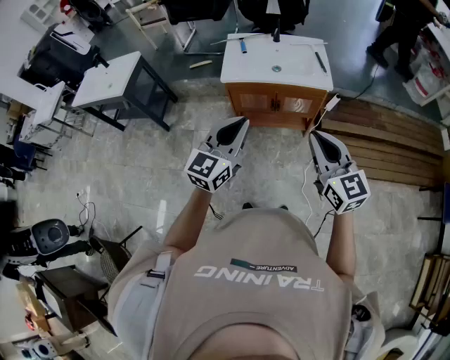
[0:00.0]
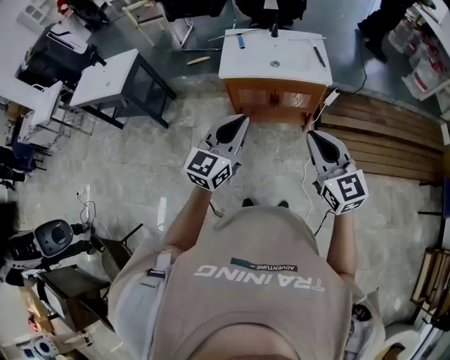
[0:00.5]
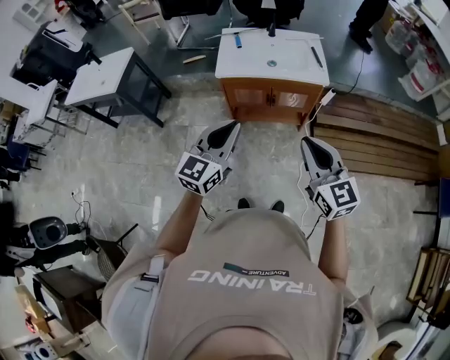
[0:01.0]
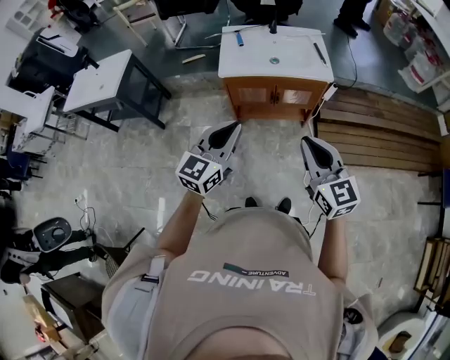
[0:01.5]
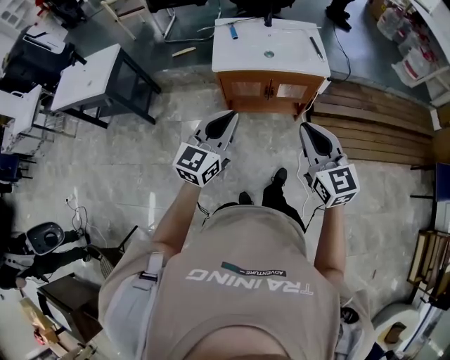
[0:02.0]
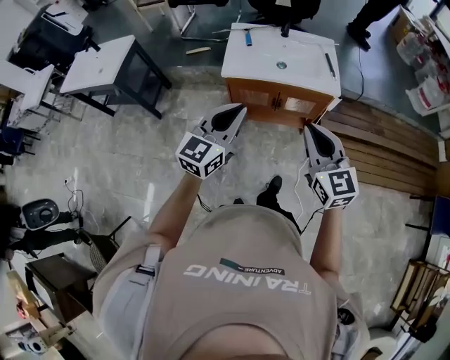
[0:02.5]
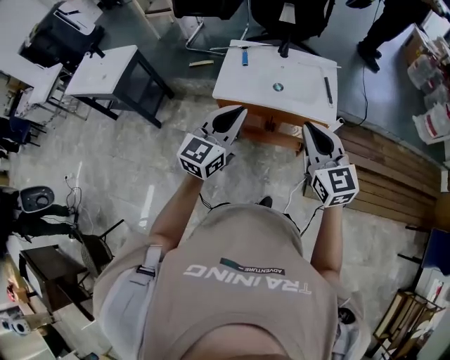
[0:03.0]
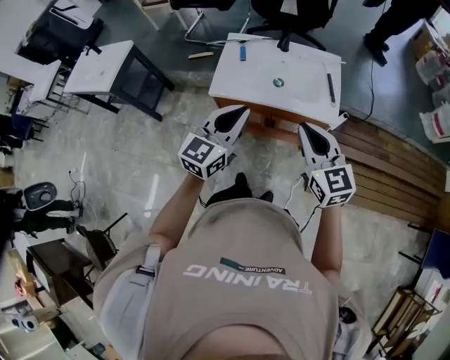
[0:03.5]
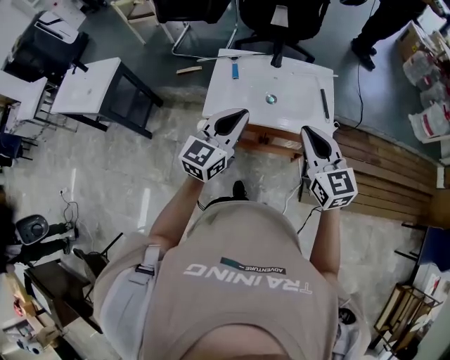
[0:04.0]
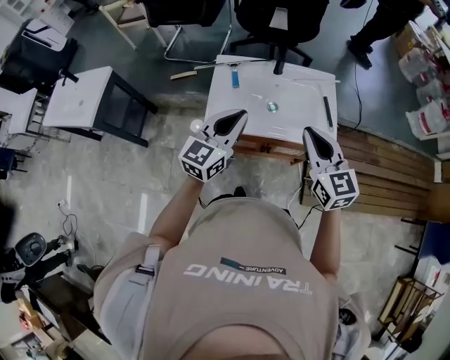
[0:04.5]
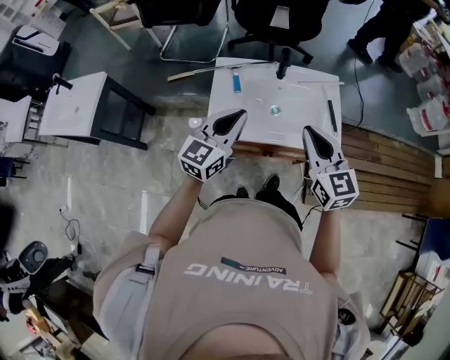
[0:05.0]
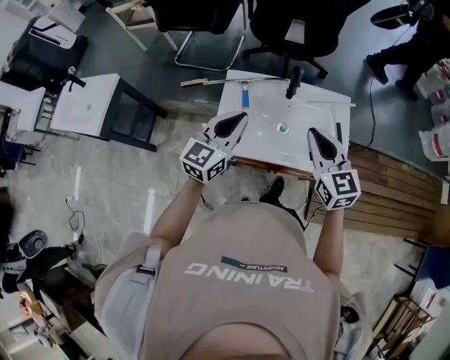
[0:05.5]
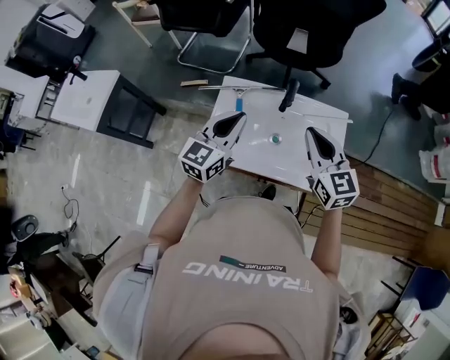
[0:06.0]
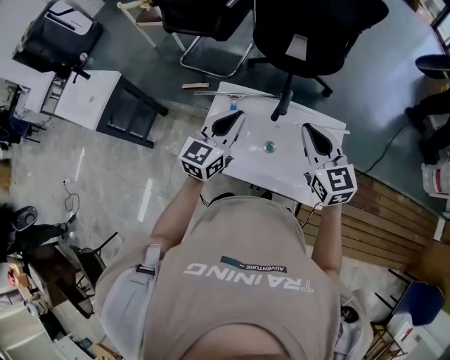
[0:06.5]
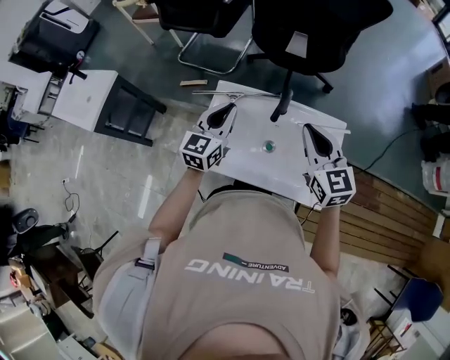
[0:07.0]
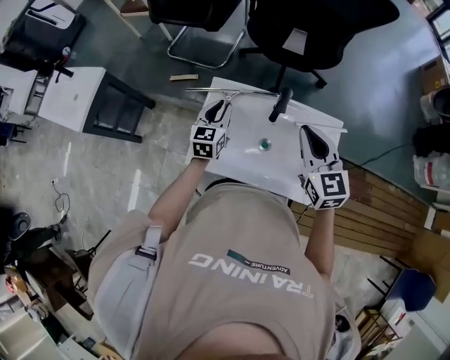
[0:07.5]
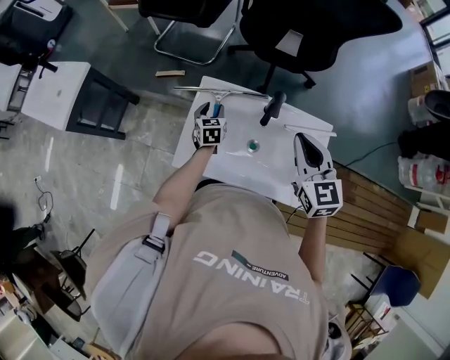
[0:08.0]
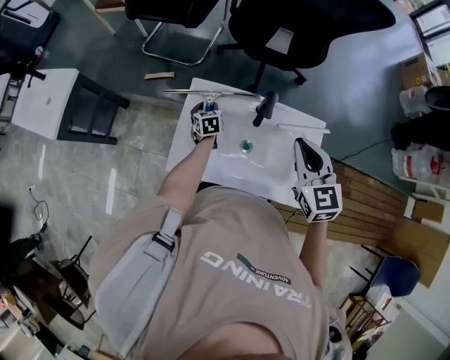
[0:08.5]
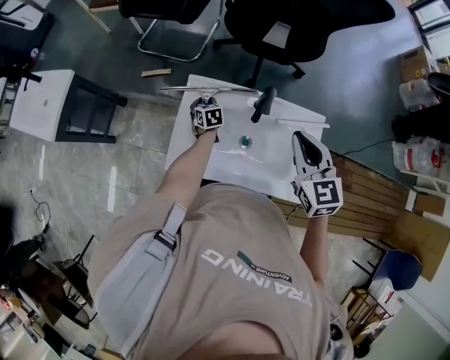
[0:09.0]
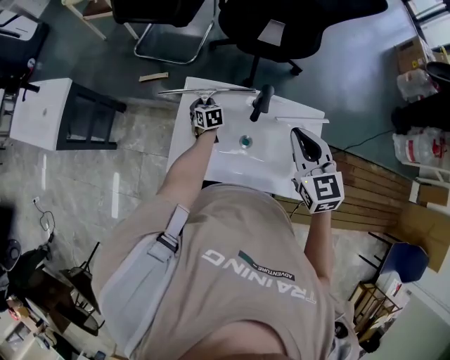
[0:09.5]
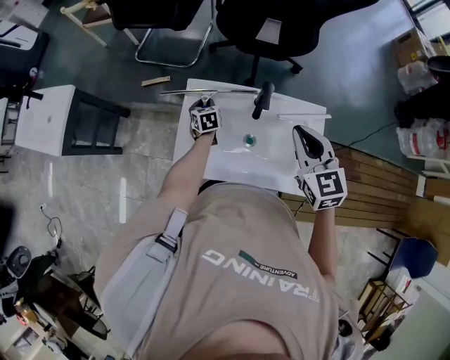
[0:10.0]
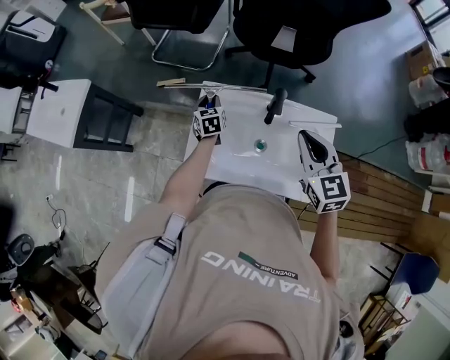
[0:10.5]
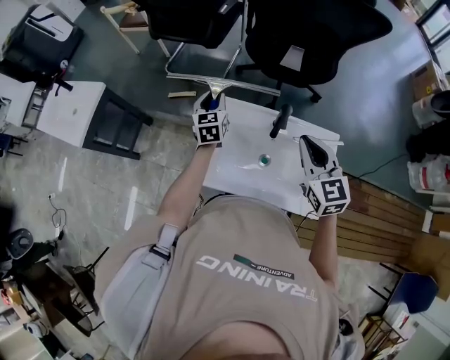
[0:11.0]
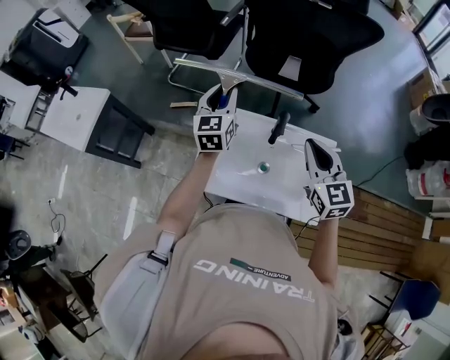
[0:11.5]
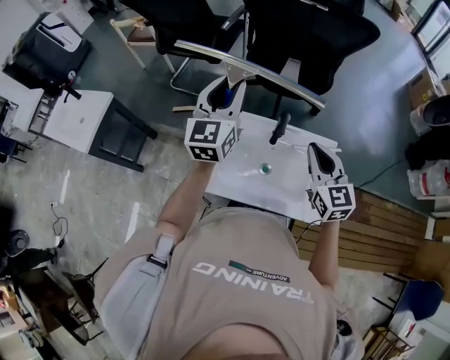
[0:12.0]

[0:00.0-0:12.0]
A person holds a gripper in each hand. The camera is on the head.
0:00.0 to 0:02.0: The two grippers go approximately 5 cm to the left.
0:02.0 to 0:04.0: The grippers both shift forward by approximately 30 cm.
0:04.0 to 0:06.0: The two grippers go approximately 25 cm forward.
0:06.0 to 0:08.0: The left gripper travels downward and forward by about 30 cm, rotates some 40 degrees, and opens its fingers, while the right gripper is displaced forward by approximately 5 cm.
0:08.0 to 0:10.0: The left gripper moves about 5 cm.
0:10.0 to 0:12.0: The left gripper travels upward by approximately 40 cm, and angles its fingers upward, by roughly 50 degrees.

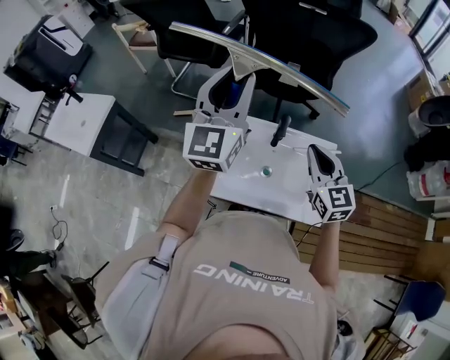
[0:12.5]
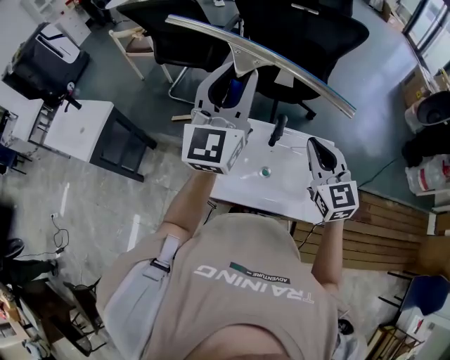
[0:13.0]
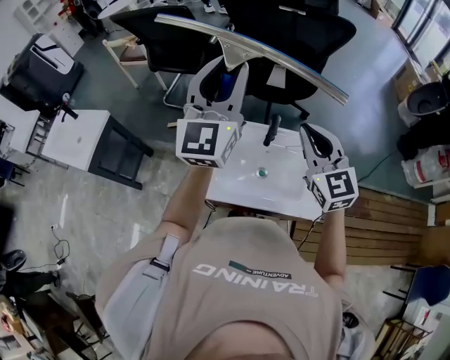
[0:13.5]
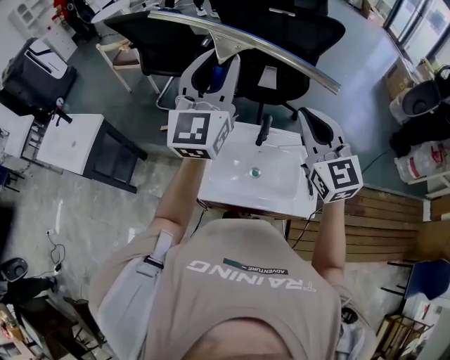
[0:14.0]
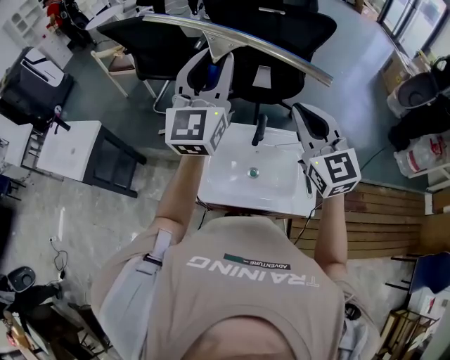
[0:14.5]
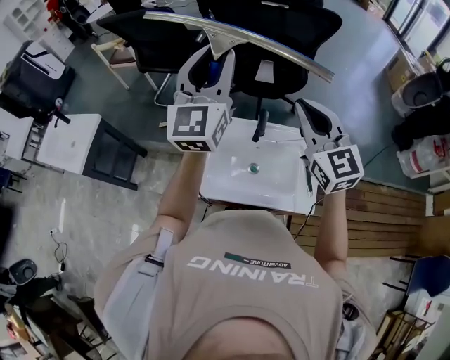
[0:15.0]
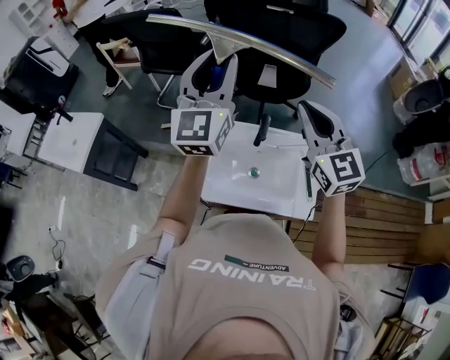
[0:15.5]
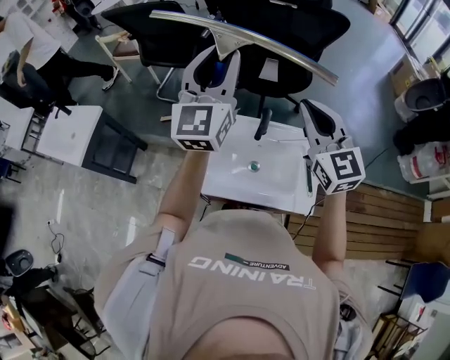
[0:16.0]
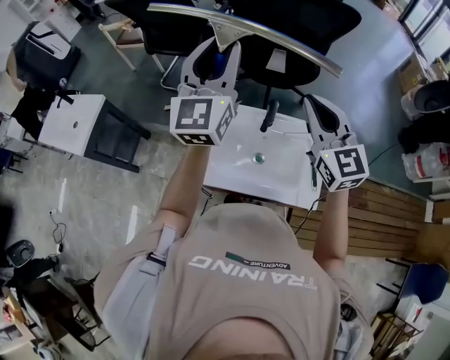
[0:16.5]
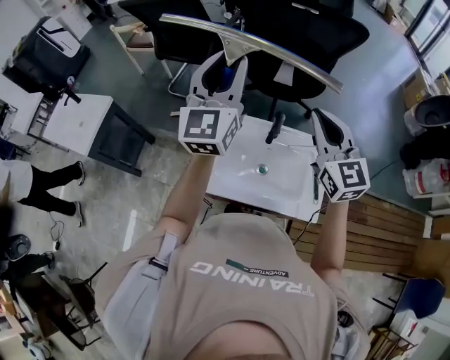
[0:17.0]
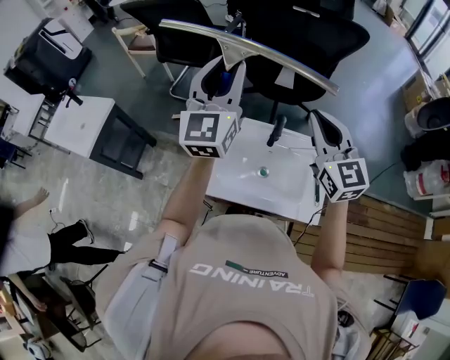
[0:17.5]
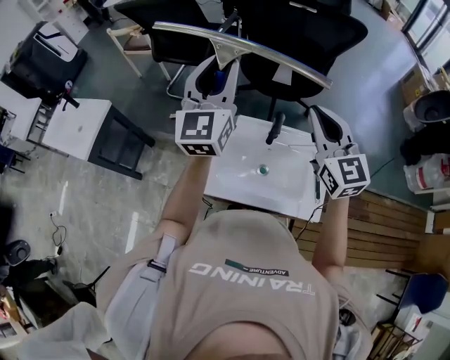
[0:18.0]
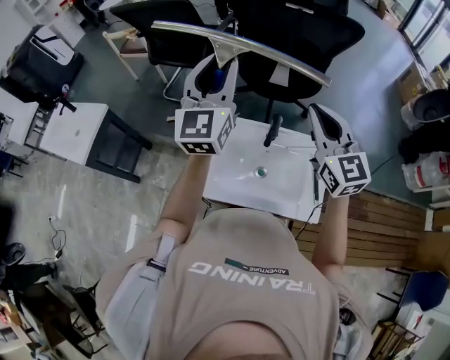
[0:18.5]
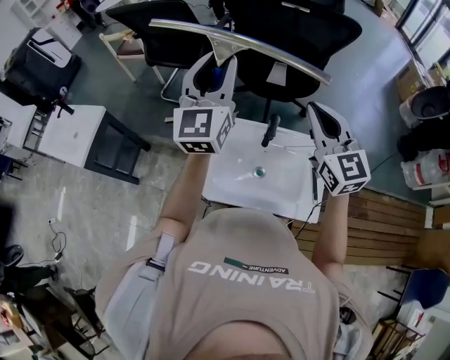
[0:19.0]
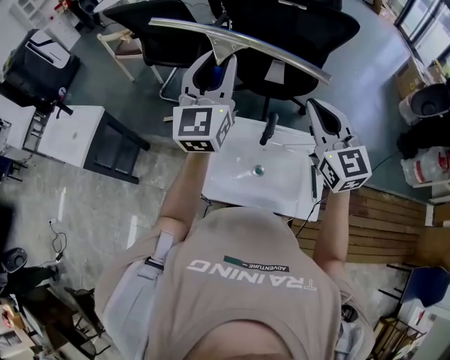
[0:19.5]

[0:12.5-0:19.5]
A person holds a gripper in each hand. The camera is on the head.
0:12.5 to 0:14.5: The right gripper is displaced upward by roughly 15 cm. Meanwhile the left gripper heads upward, covering approximately 5 cm.
0:14.5 to 0:17.5: There are only small adjustments of the grippers.
0:17.5 to 0:19.5: There are only small adjustments of the grippers.

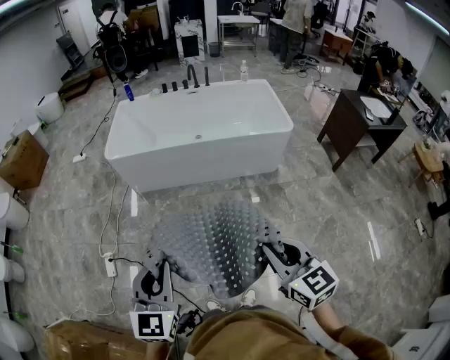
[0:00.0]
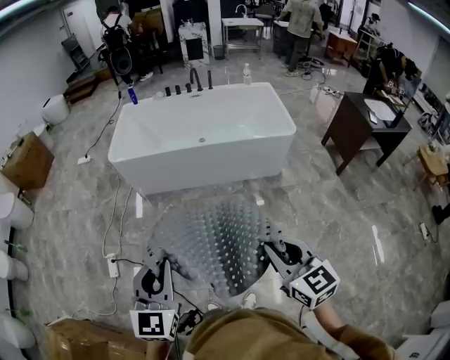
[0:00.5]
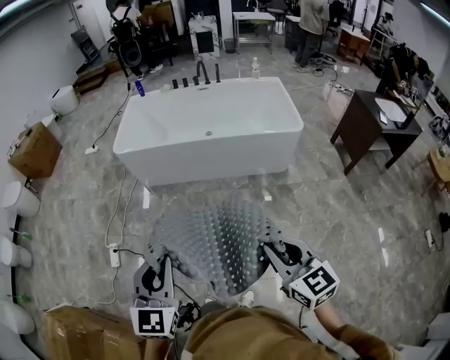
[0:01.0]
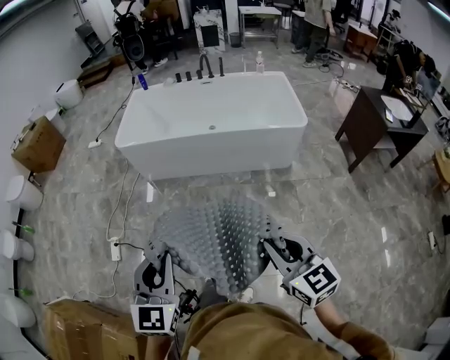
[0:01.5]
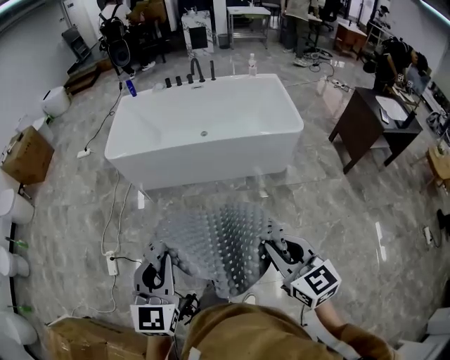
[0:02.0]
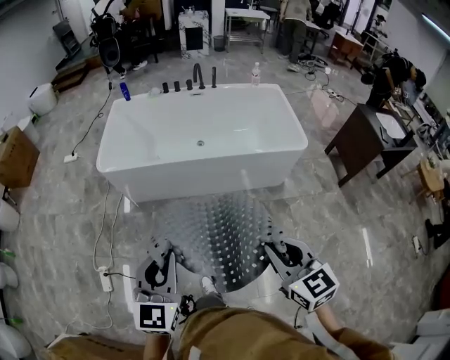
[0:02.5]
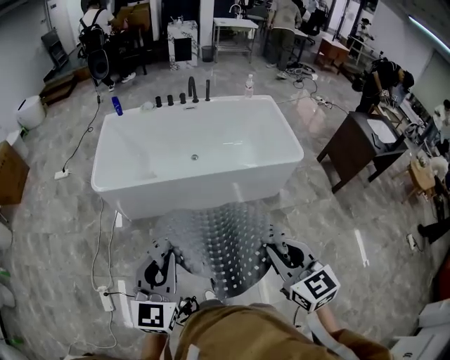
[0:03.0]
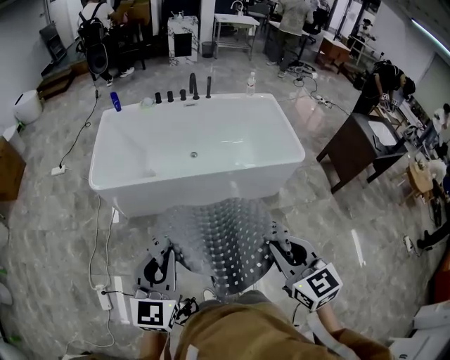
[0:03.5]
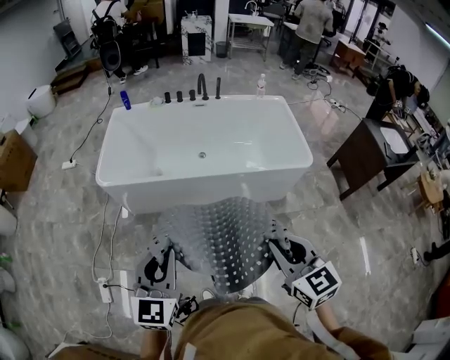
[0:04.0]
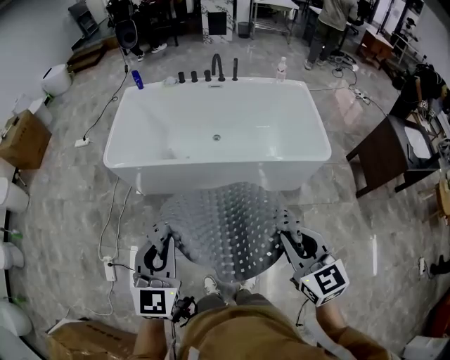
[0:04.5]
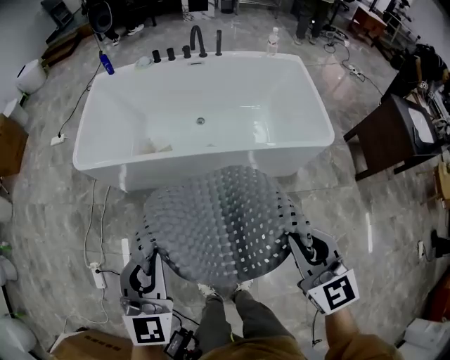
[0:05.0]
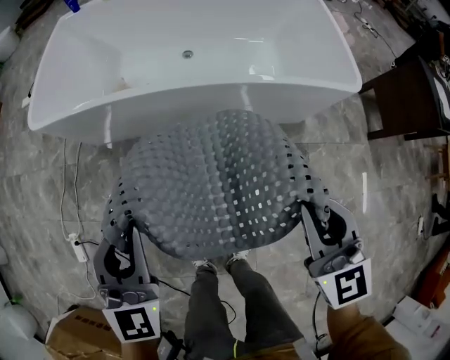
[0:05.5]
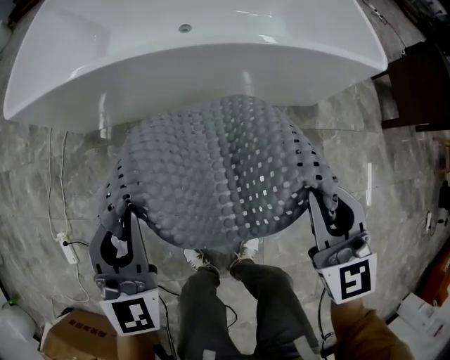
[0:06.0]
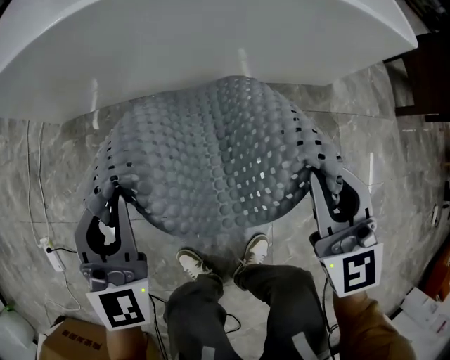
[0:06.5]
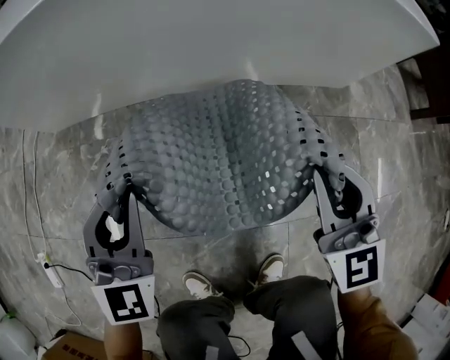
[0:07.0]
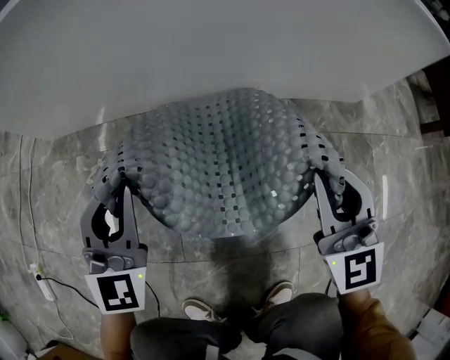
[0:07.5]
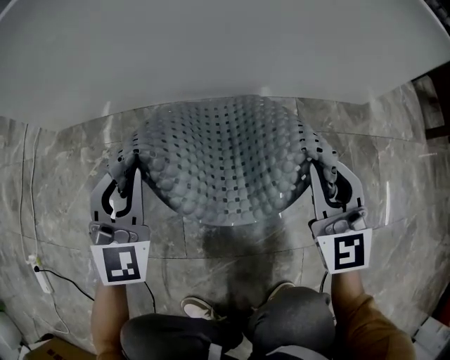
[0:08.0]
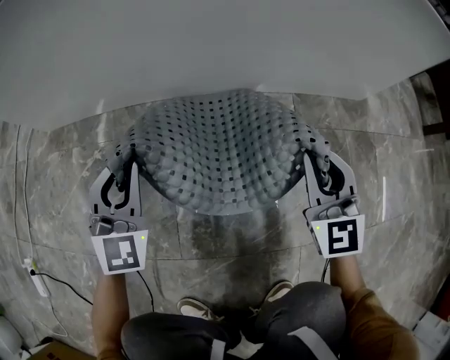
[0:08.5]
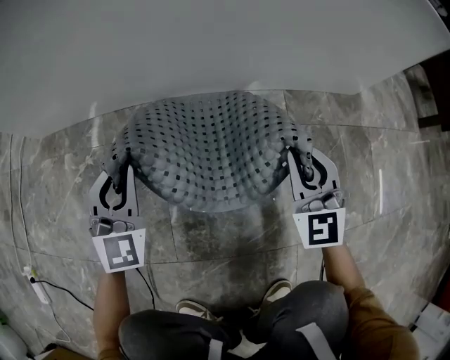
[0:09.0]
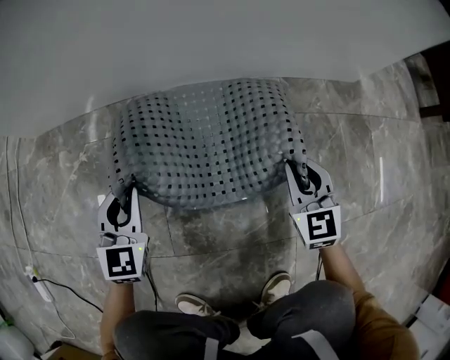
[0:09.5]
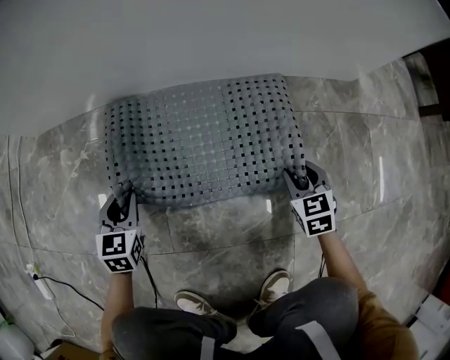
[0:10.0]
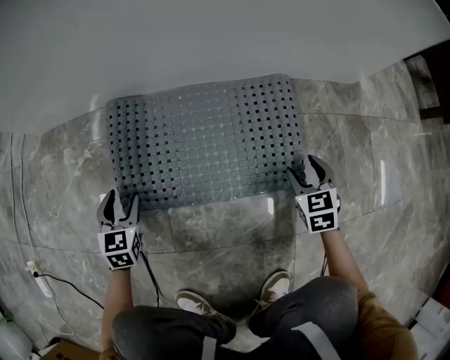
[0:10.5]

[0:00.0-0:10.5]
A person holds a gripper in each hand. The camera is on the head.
0:00.0 to 0:02.0: Both grippers travel together forward and to the right, some 10 cm.
0:02.0 to 0:04.0: Both grippers move forward, approximately 25 cm.
0:04.0 to 0:06.5: Both grippers move downward, about 50 cm. The left gripper rotates approximately 20 degrees.
0:06.5 to 0:08.5: The right gripper moves approximately 5 cm.
0:08.5 to 0:10.5: The right gripper travels downward and to the right by approximately 20 cm, tilts its fingers approximately 40 degrees downward, and opens. The left gripper travels downward and to the left by some 20 cm, turns by about 30 degrees, and opens its fingers.
